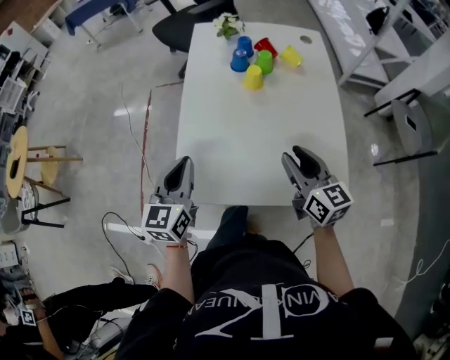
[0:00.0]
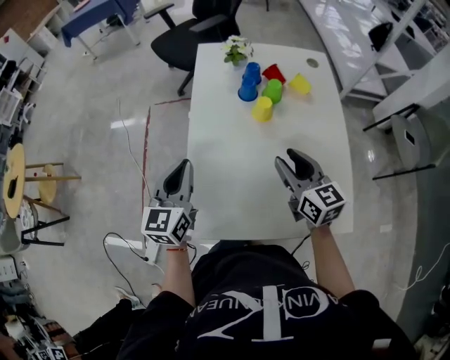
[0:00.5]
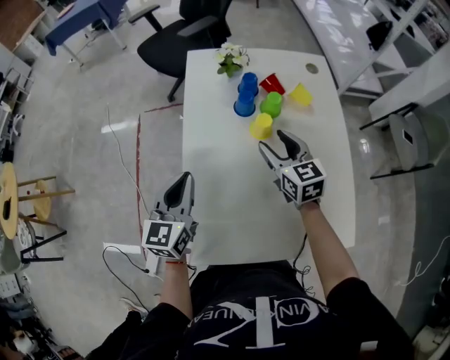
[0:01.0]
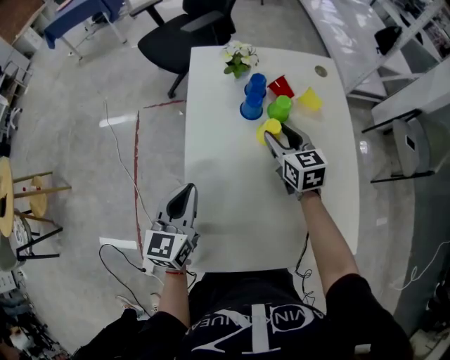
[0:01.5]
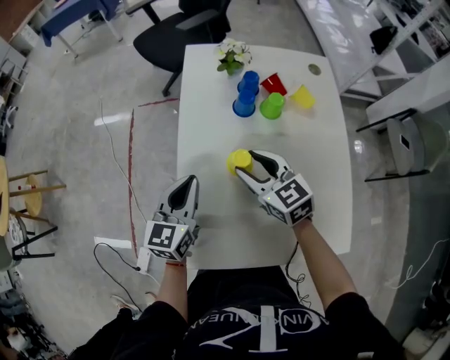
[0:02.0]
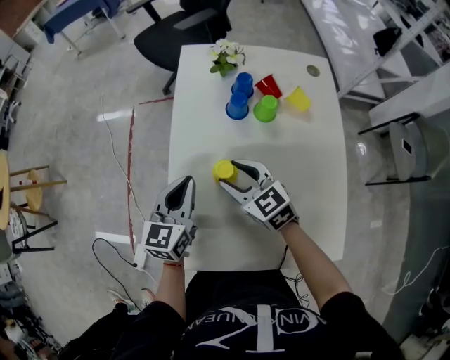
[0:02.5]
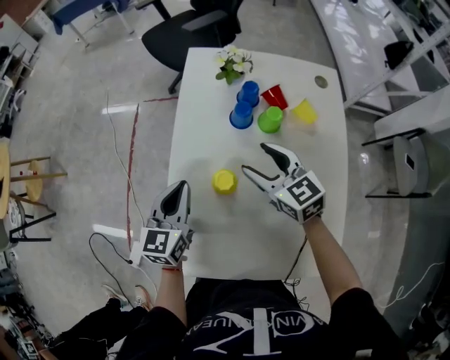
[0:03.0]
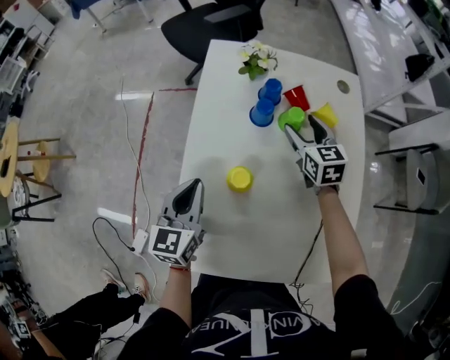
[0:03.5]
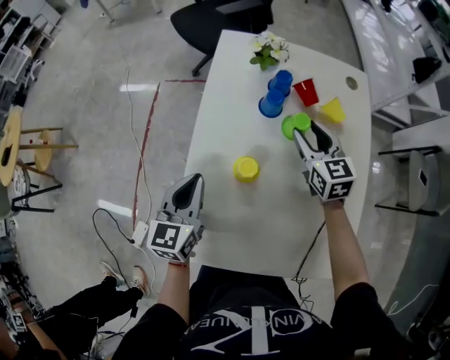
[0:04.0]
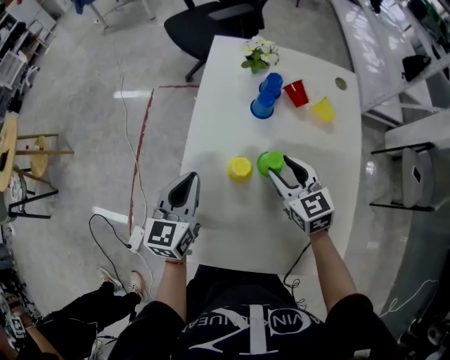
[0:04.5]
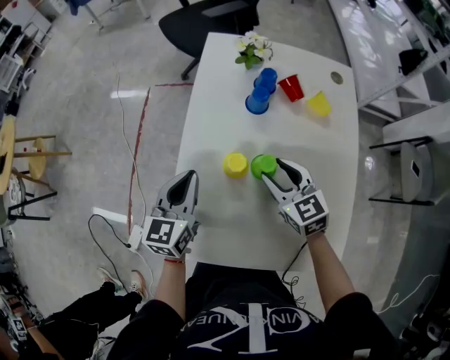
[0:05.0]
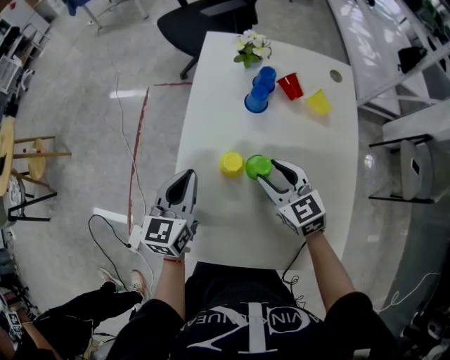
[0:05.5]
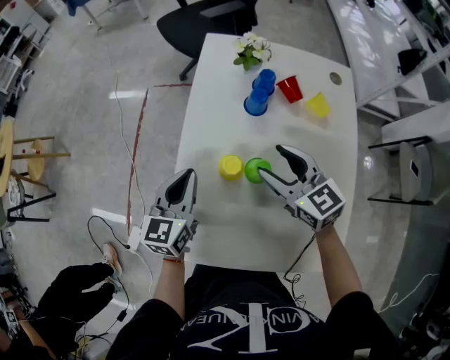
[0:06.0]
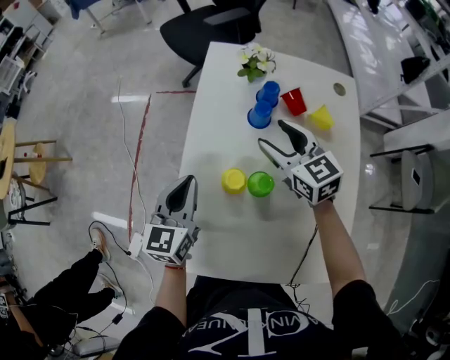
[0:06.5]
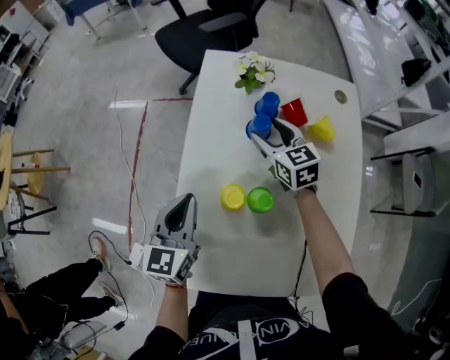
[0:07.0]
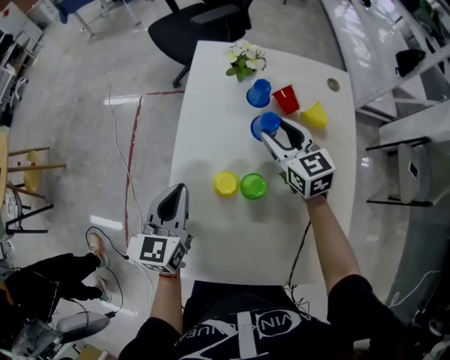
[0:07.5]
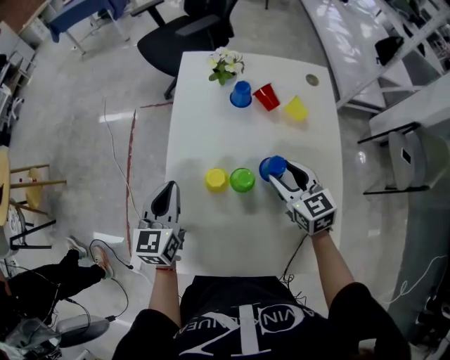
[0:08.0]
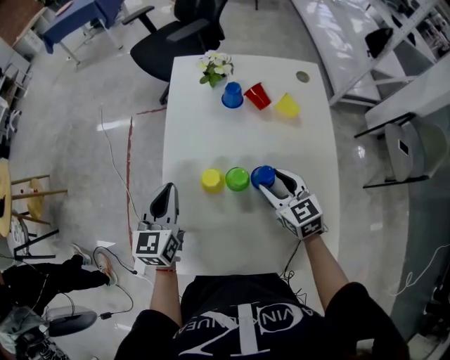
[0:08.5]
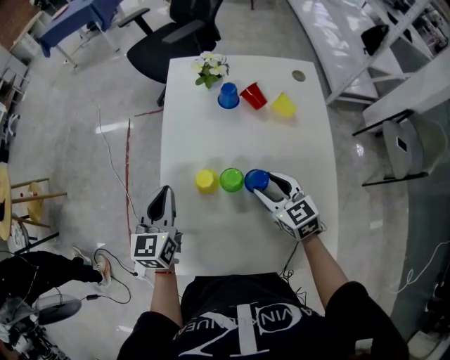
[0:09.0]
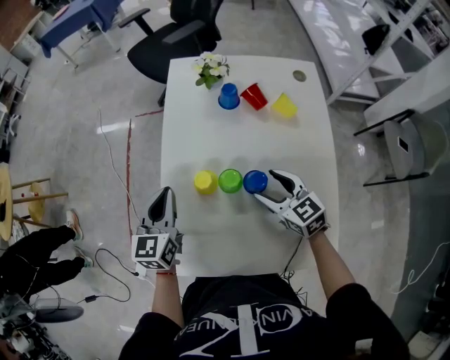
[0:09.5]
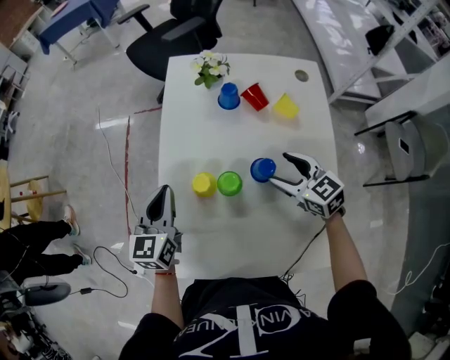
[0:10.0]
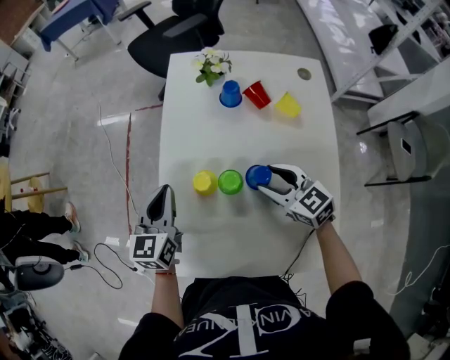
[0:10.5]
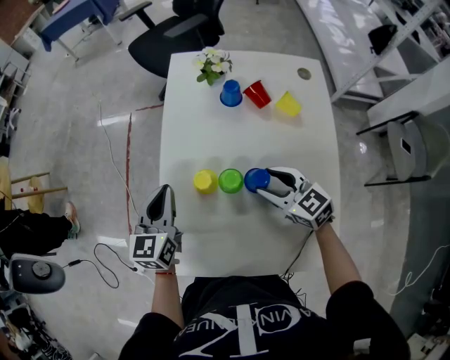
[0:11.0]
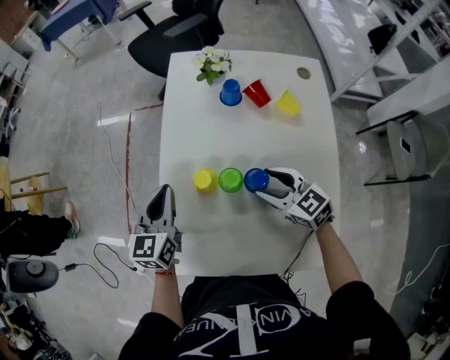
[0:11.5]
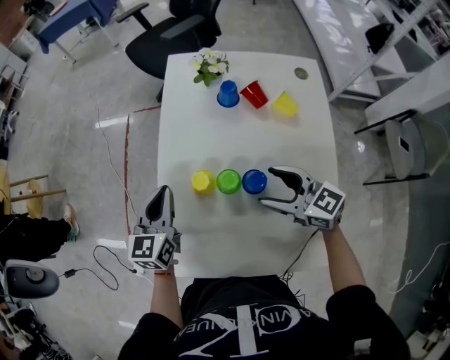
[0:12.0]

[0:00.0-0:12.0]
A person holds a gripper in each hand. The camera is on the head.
0:00.0 to 0:02.0: The right gripper moves forward and to the left, roughly 25 cm, and rotates roughly 20 degrees; the left gripper moves forward, about 15 cm.
0:02.0 to 0:04.0: The right gripper is displaced to the right and forward by roughly 15 cm.
0:04.0 to 0:06.0: The right gripper moves backward and to the left, approximately 10 cm, and rotates roughly 20 degrees.
0:06.0 to 0:08.0: The right gripper goes roughly 10 cm to the right, and moves roughly 20 cm forward and comes back.
0:08.0 to 0:10.0: There are only small adjustments of the grippers.
0:10.0 to 0:12.0: The right gripper travels to the left by about 5 cm.

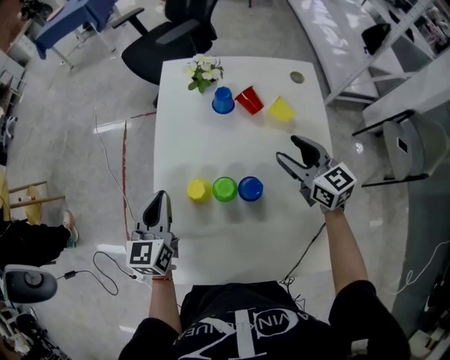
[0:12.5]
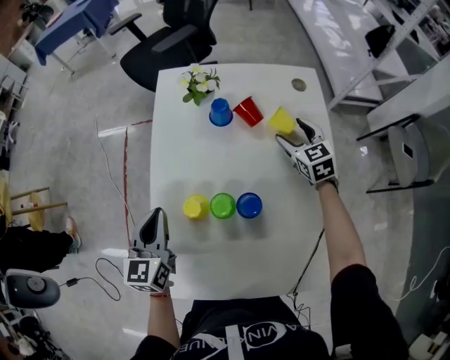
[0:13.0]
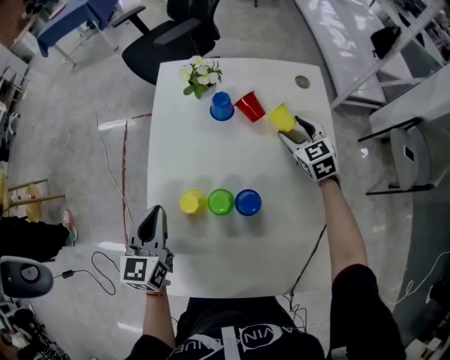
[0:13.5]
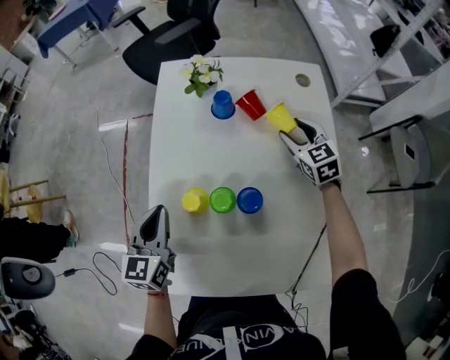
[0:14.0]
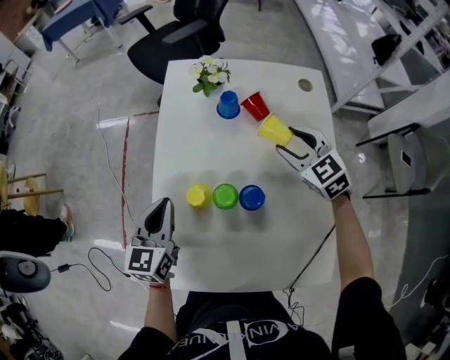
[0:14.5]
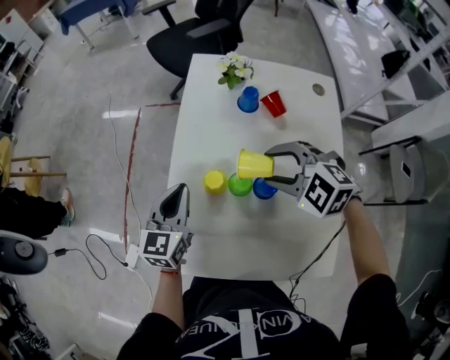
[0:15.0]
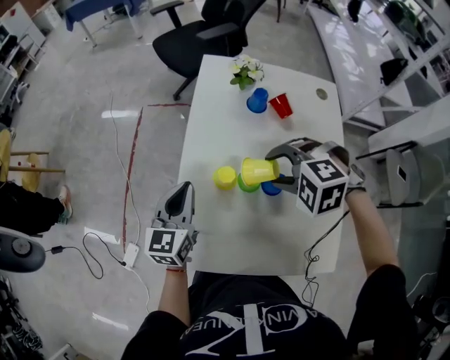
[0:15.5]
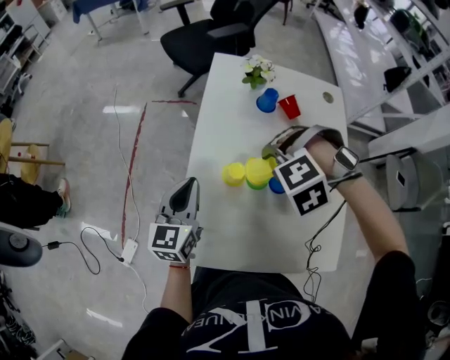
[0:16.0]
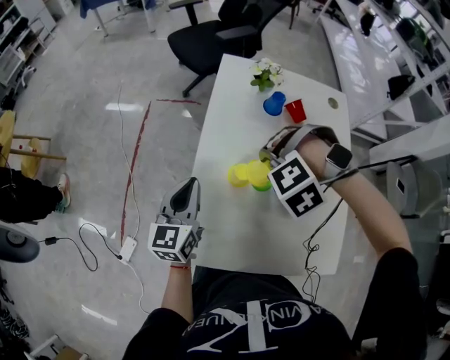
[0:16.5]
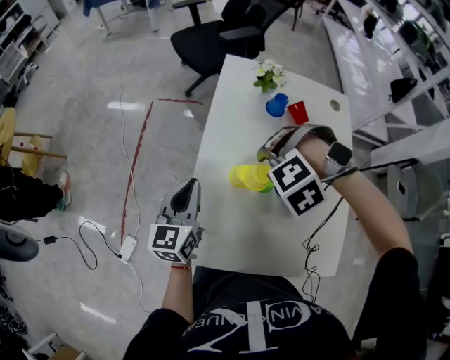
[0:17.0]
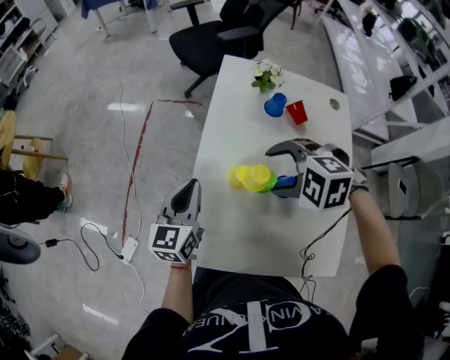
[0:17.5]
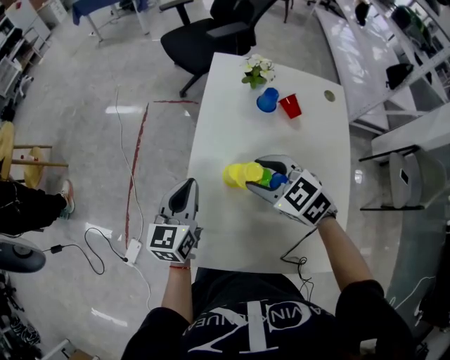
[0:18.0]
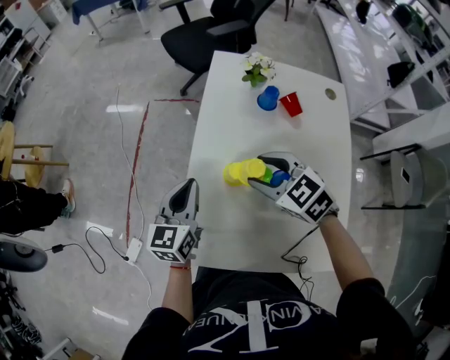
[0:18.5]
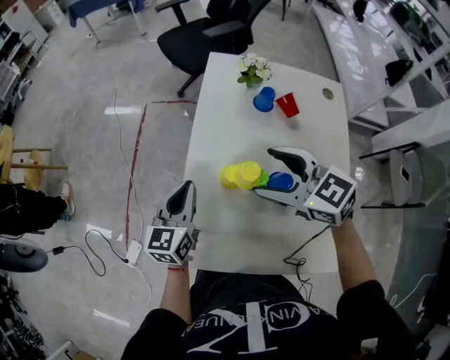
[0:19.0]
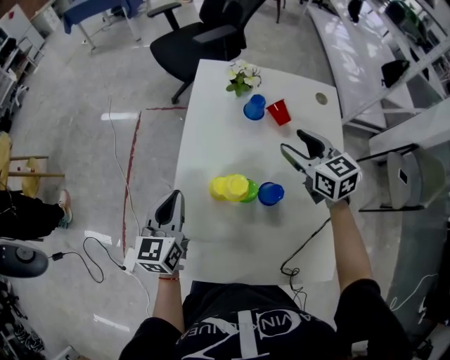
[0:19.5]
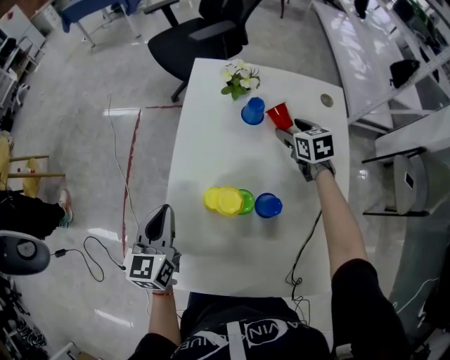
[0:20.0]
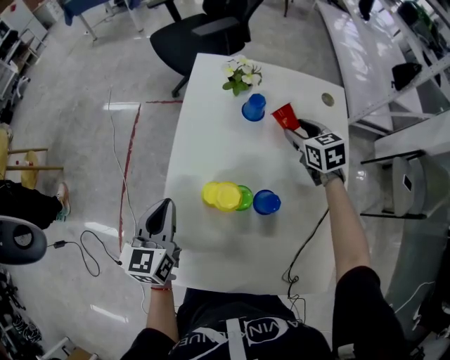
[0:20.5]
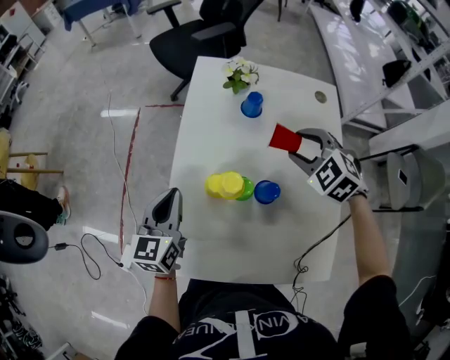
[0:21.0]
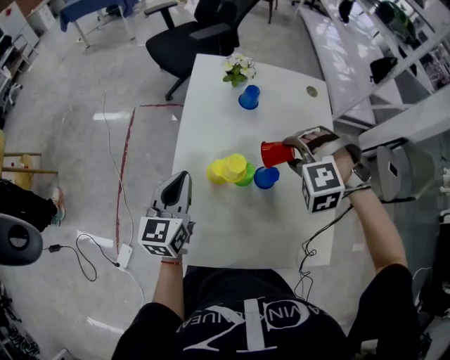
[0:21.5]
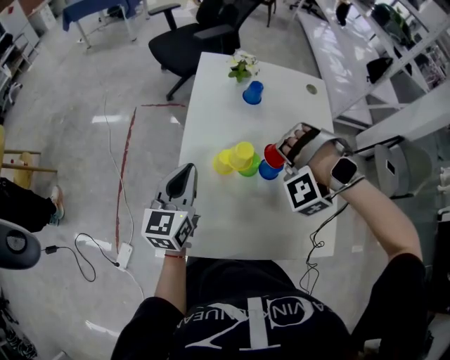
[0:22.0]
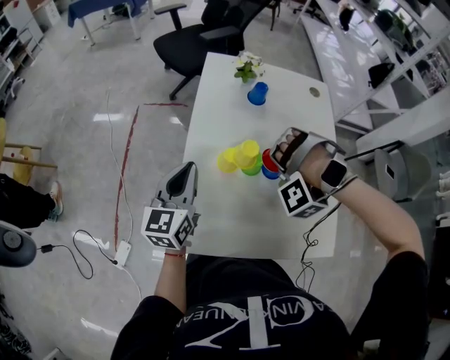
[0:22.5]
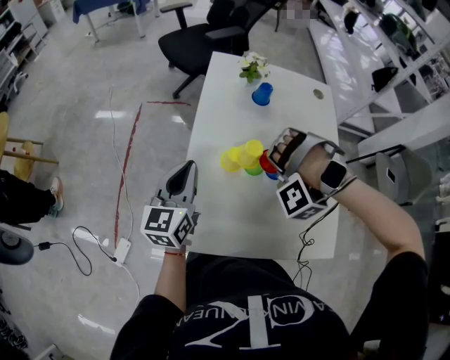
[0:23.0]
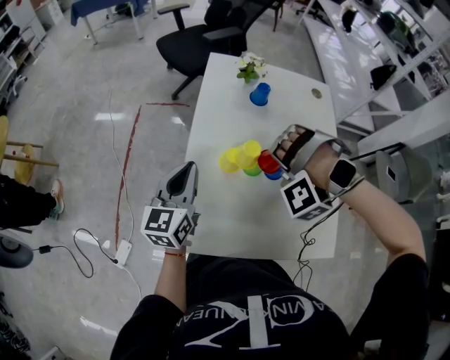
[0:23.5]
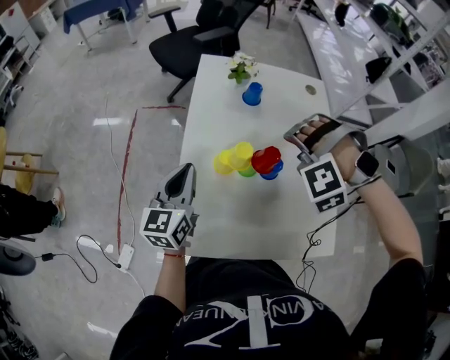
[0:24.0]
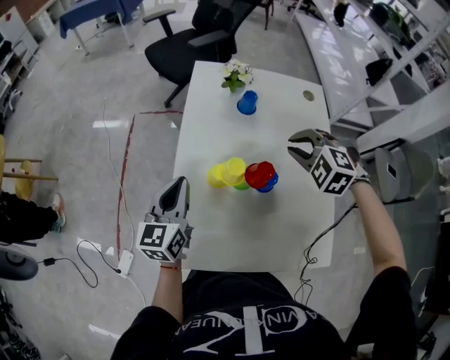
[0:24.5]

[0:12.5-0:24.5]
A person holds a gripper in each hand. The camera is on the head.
0:12.5 to 0:14.5: The right gripper heads forward, covering about 5 cm, and rotates approximately 30 degrees.
0:14.5 to 0:16.5: The left gripper moves approximately 10 cm, while the right gripper shifts by roughly 20 cm, and rolls counterclockwise, seen from behind, by approximately 80 degrees.
0:16.5 to 0:18.5: The right gripper tips its fingers upward by some 40 degrees.
0:18.5 to 0:20.5: The right gripper is displaced to the right and forward by roughly 30 cm, and turns by roughly 30 degrees.
0:20.5 to 0:22.5: The left gripper shifts roughly 5 cm upward. The right gripper ends up about 25 cm from where it was, and rotates around the line of its fingers by approximately 120 degrees, counterclockwise from behind.
0:22.5 to 0:24.5: The right gripper shifts by about 10 cm, rotates around the line of its fingers by some 70 degrees, clockwise from behind, and closes.

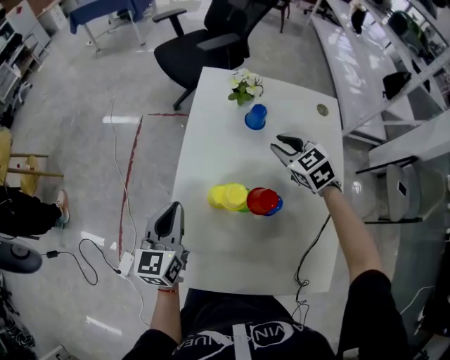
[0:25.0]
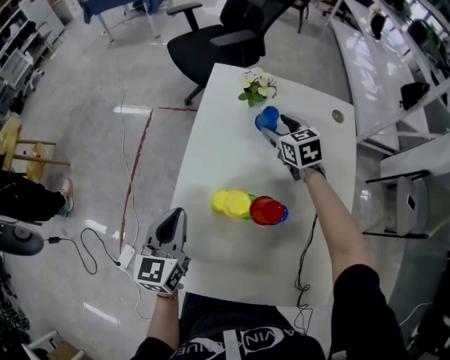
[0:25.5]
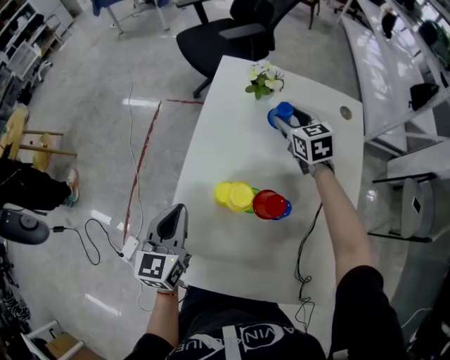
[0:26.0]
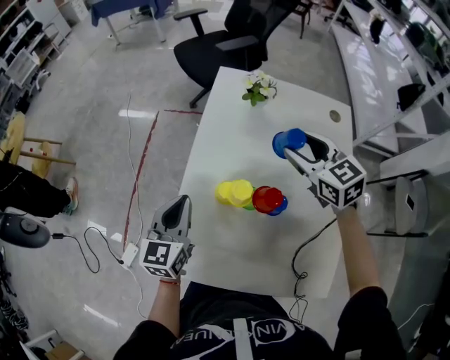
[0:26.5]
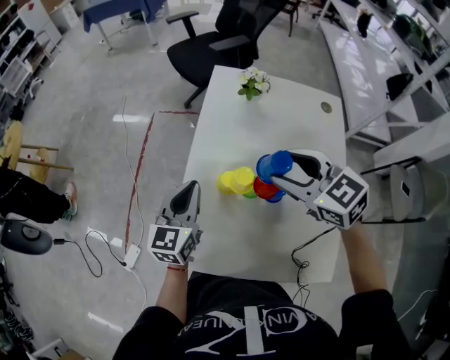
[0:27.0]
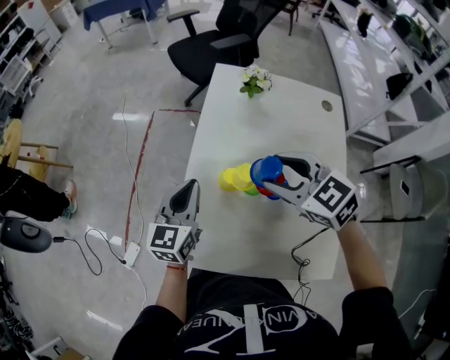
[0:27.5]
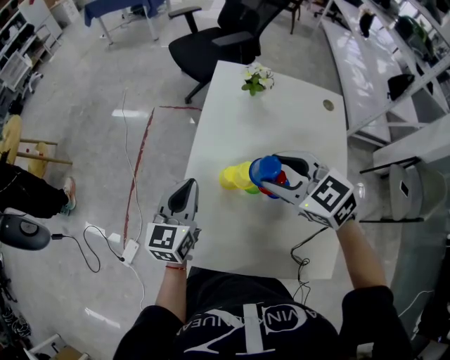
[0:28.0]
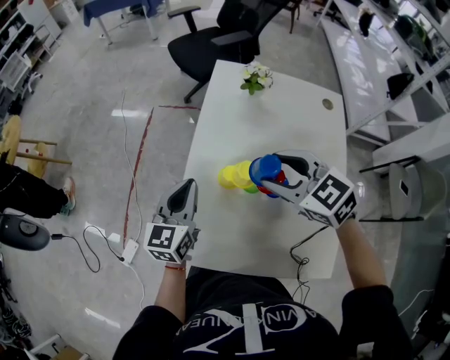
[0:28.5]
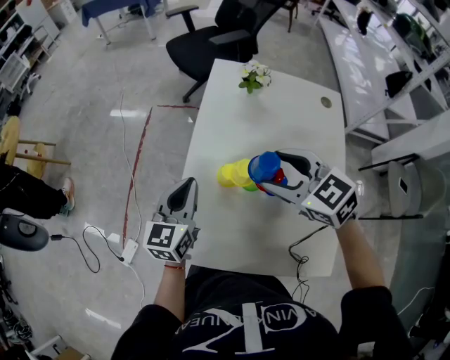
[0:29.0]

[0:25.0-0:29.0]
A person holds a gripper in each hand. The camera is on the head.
0:25.0 to 0:27.0: The right gripper moves upward, backward and to the left, approximately 20 cm, and opens its fingers.
0:27.0 to 0:29.0: The grippers make only small movements.
